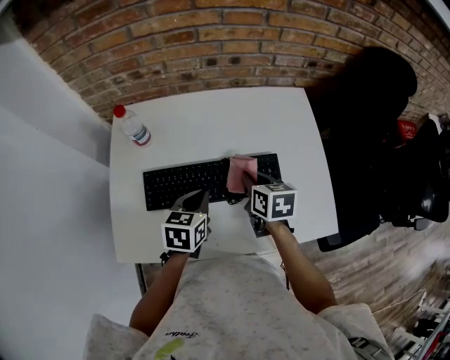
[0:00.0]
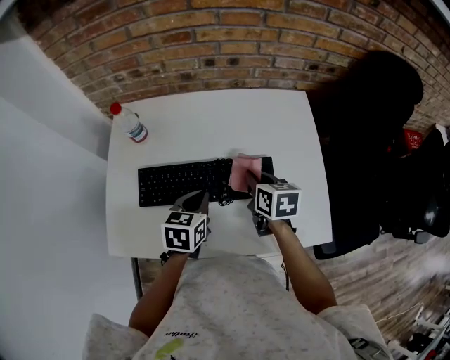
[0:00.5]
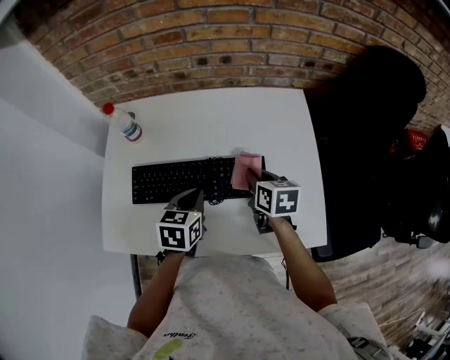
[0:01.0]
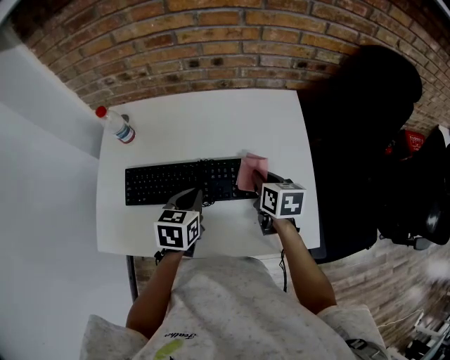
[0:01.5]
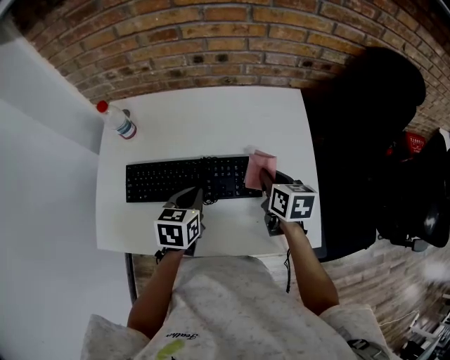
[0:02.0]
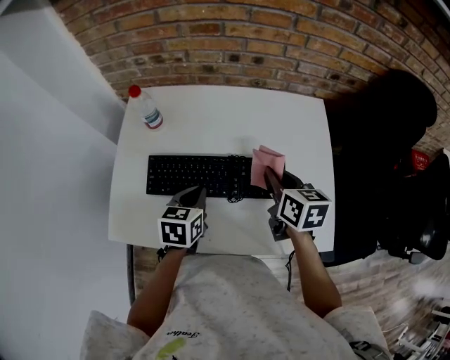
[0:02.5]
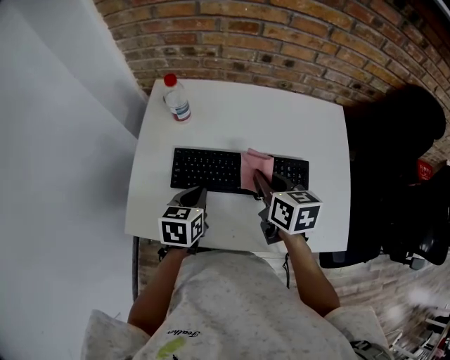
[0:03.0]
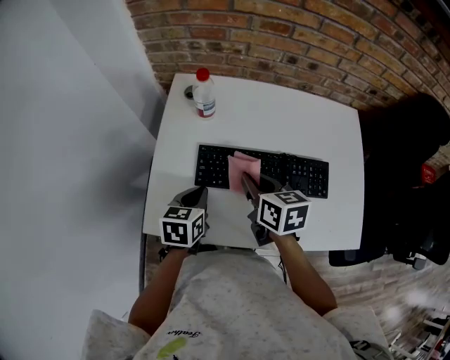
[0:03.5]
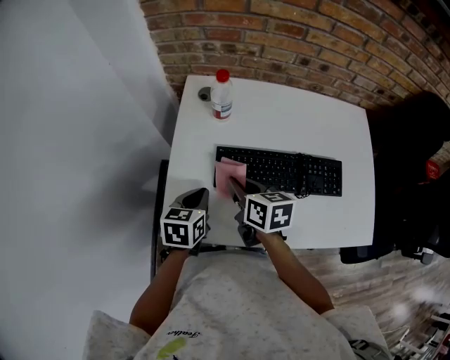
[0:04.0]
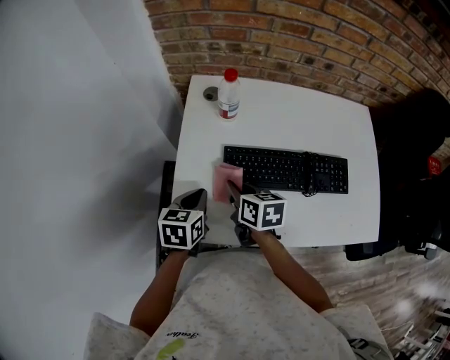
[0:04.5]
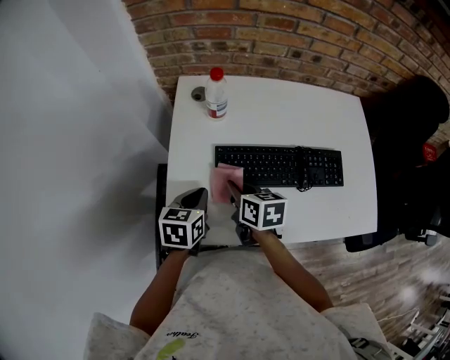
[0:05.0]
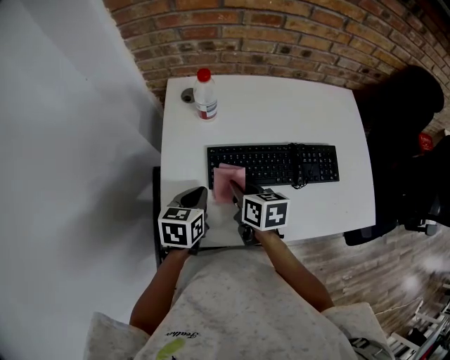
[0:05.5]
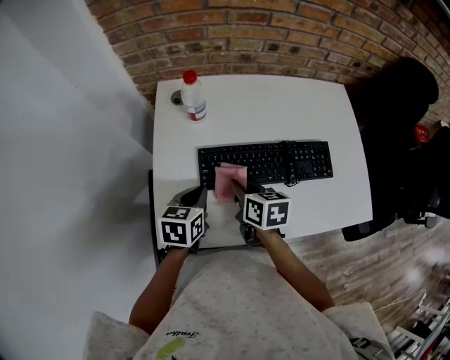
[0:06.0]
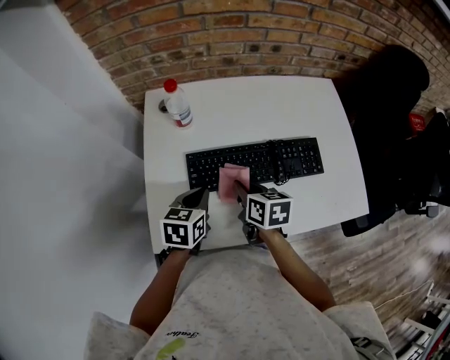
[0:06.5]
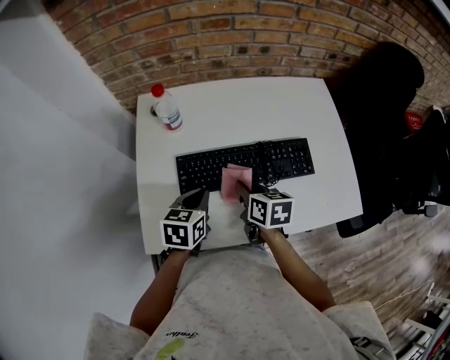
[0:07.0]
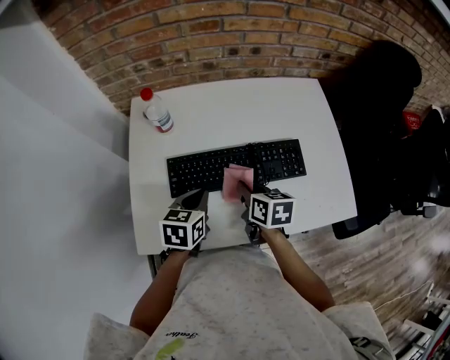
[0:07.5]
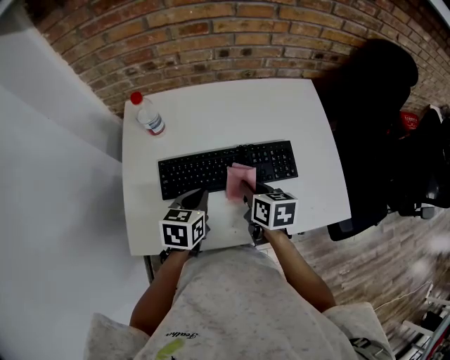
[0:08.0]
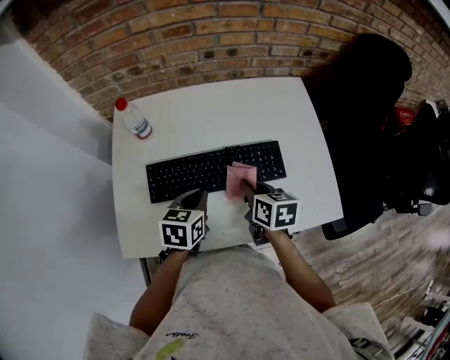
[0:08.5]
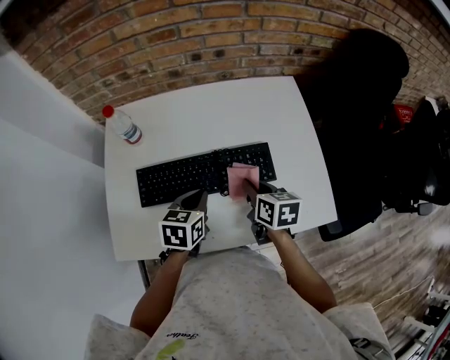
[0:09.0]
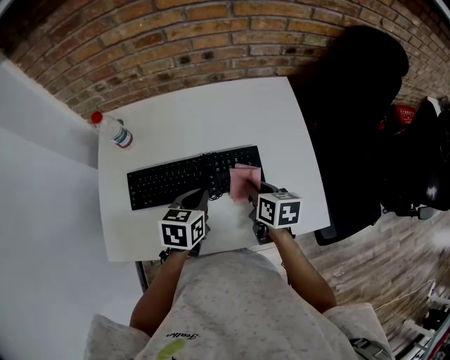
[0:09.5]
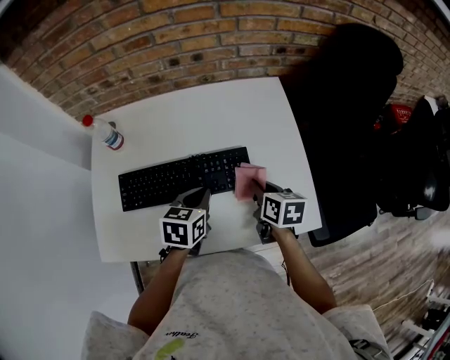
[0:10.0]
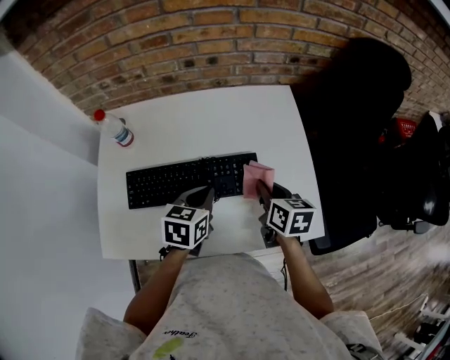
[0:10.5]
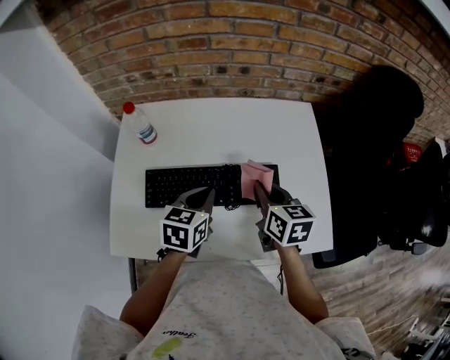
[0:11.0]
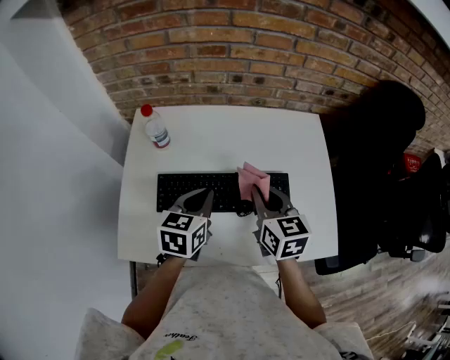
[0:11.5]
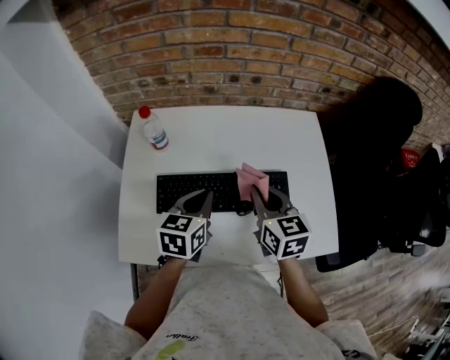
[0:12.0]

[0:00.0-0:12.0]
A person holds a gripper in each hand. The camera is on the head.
0:00.0 to 0:02.0: The right gripper heads to the right, covering roughly 15 cm; the left gripper moves to the right, roughly 5 cm.
0:02.0 to 0:04.0: The two grippers go some 35 cm to the left.
0:04.0 to 0:06.0: The right gripper changes place by some 5 cm.
0:06.0 to 0:08.0: Both grippers move to the right, about 15 cm.
0:08.0 to 0:10.0: The two grippers go approximately 20 cm to the right.
0:10.0 to 0:12.0: Both grippers move to the left and upward, about 15 cm. The right gripper changes its angle by some 30 degrees.

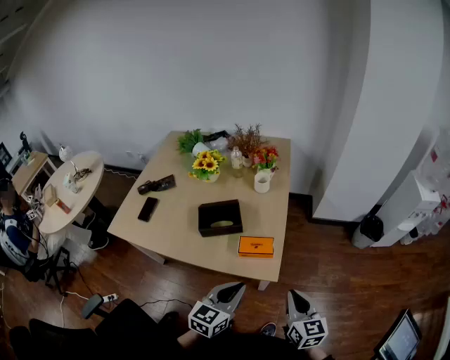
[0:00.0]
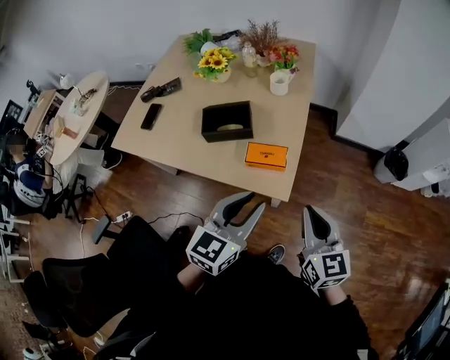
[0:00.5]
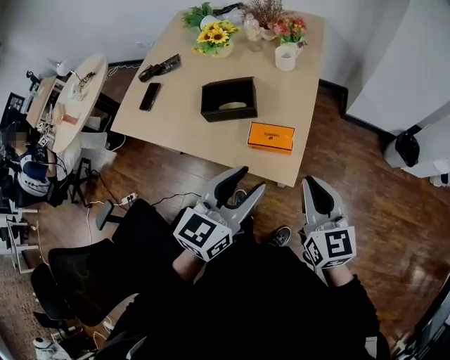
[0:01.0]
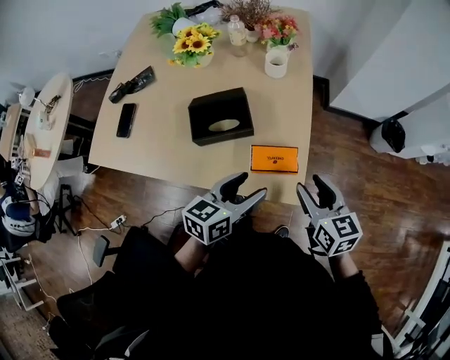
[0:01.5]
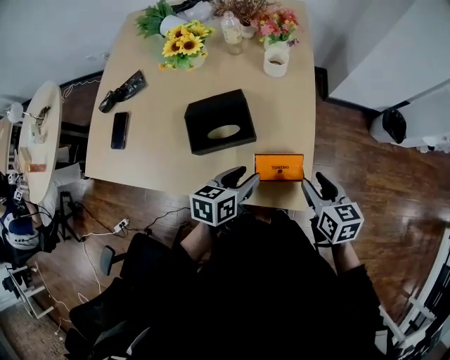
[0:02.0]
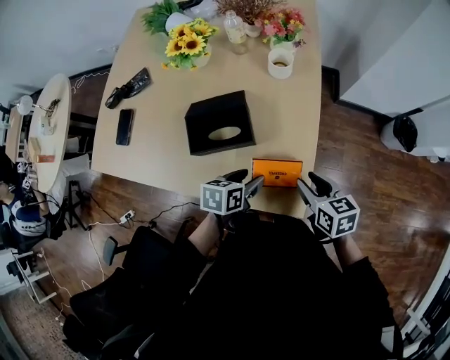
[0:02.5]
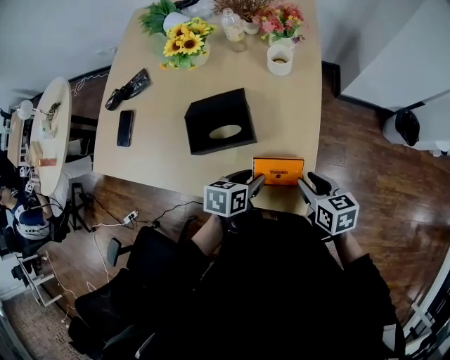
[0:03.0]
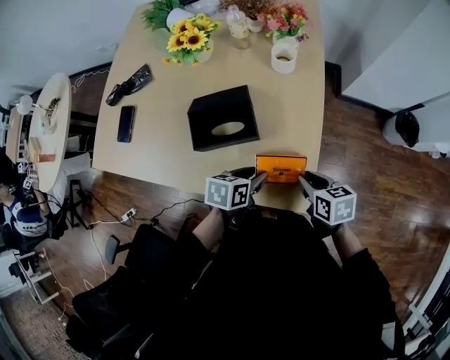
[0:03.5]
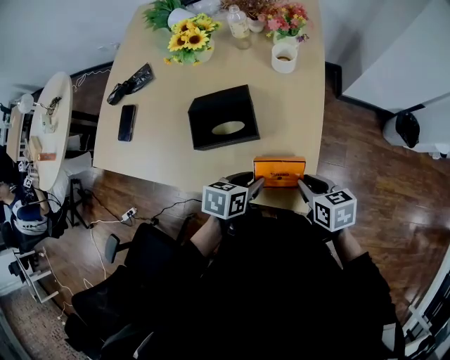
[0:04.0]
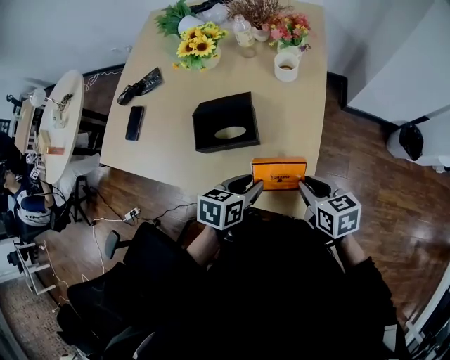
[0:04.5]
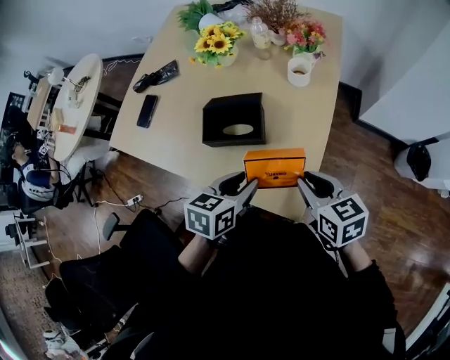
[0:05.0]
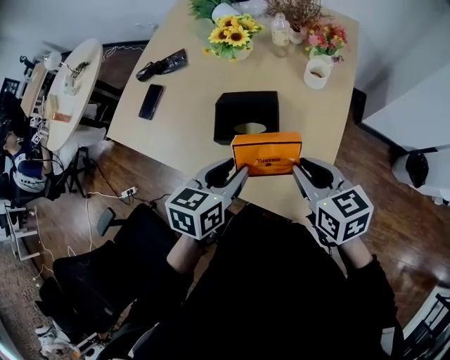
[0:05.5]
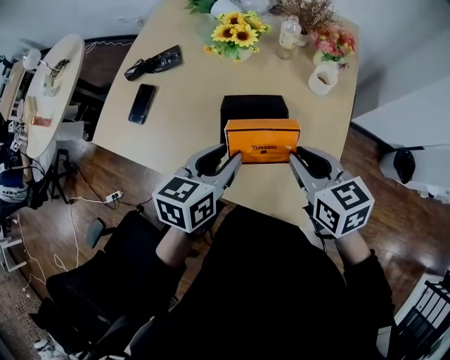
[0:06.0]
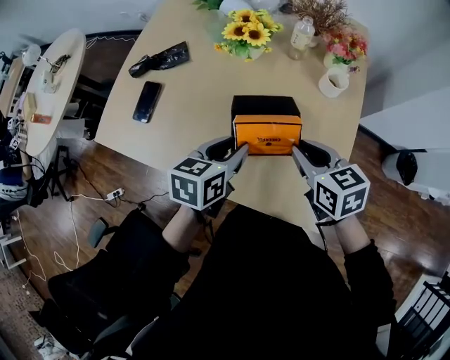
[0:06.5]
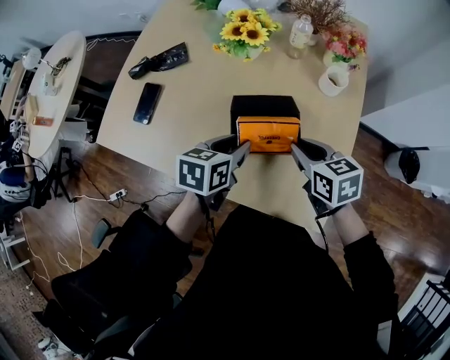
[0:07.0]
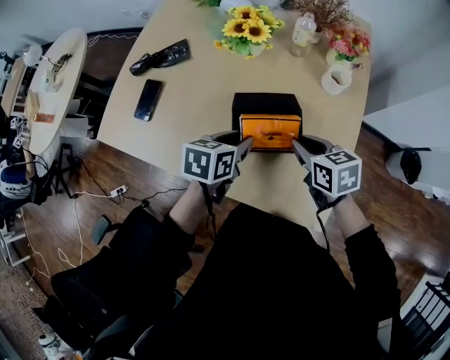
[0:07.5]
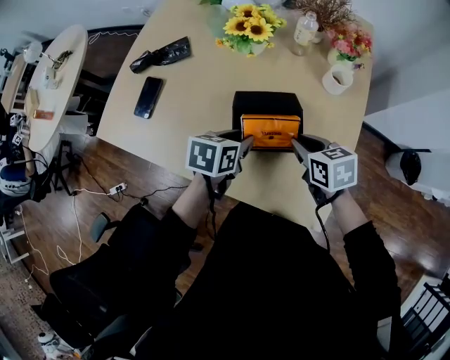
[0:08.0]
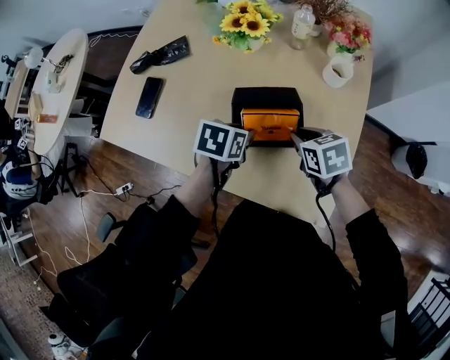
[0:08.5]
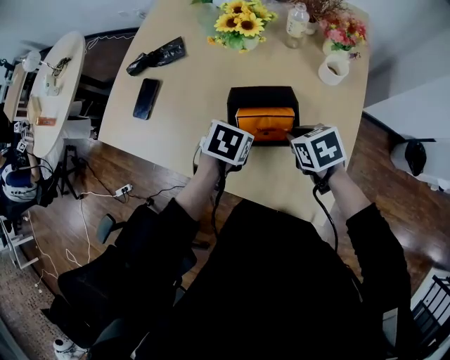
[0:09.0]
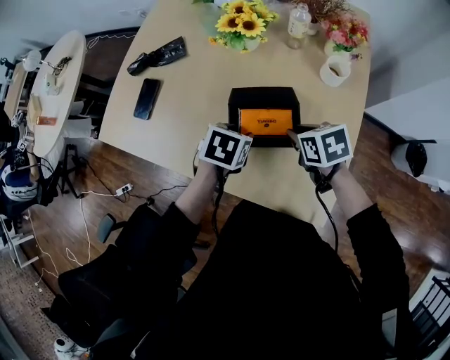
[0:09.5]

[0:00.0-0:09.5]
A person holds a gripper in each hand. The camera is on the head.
0:00.0 to 0:02.0: Both grippers travel together forward and downward, about 25 cm. The right gripper opens up, while the left gripper turns by roughly 30 degrees, and opens up.
0:02.0 to 0:04.0: The right gripper is displaced downward by roughly 5 cm, and closes. Meanwhile the left gripper shifts by approximately 5 cm.
0:04.0 to 0:05.5: The right gripper is displaced upward, to the left and forward by roughly 20 cm, and turns by about 20 degrees. The left gripper moves upward and to the left, about 15 cm, and swivels about 30 degrees.
0:05.5 to 0:07.5: Both grippers move forward, downward and to the left, about 15 cm.
0:07.5 to 0:09.5: The left gripper changes its angle by approximately 20 degrees.

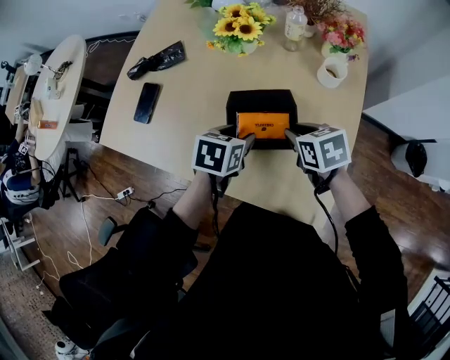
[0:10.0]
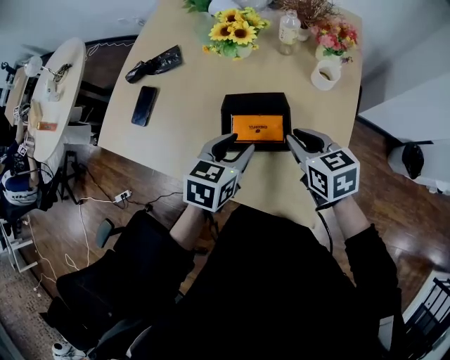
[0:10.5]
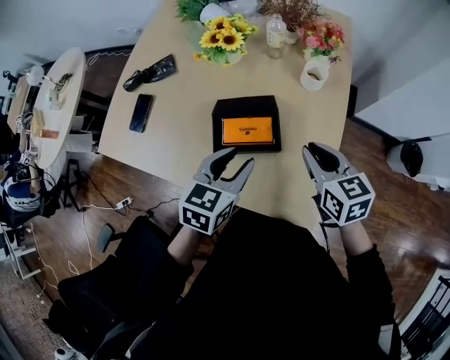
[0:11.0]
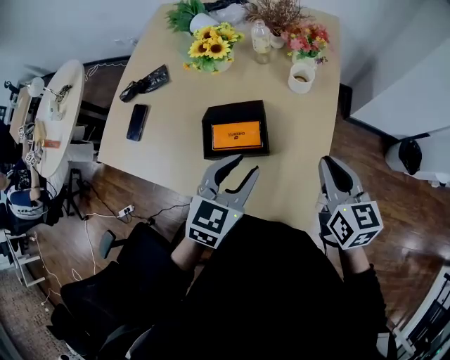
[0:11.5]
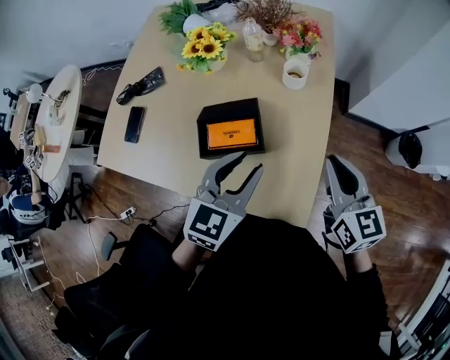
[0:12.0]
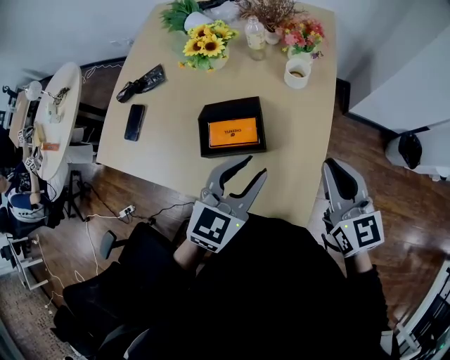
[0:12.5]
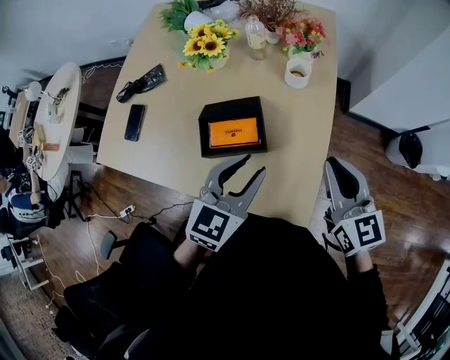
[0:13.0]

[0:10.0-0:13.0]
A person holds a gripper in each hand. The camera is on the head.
0:10.0 to 0:11.5: The right gripper moves to the right, upward and backward, roughly 20 cm, and tilts its fingers roughly 30 degrees upward. The left gripper moves upward, to the right and backward, approximately 20 cm, and changes its angle by some 30 degrees.
0:11.5 to 0:13.0: The grippers stay close to where they were, moving slightly.

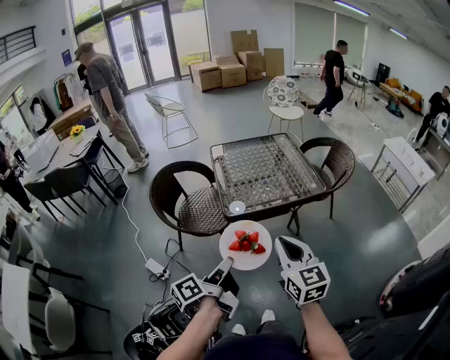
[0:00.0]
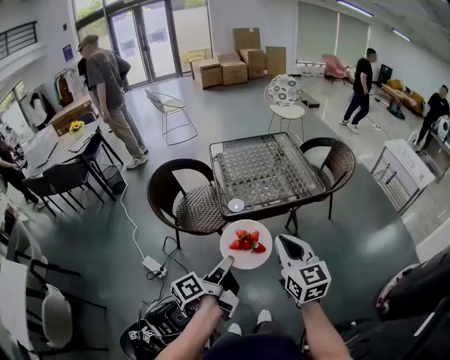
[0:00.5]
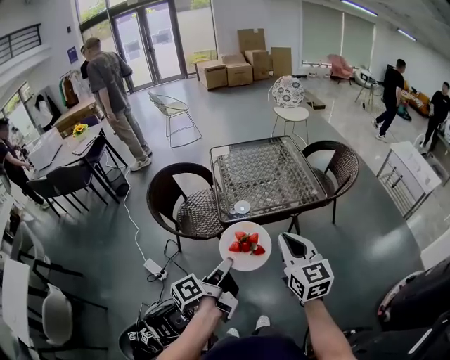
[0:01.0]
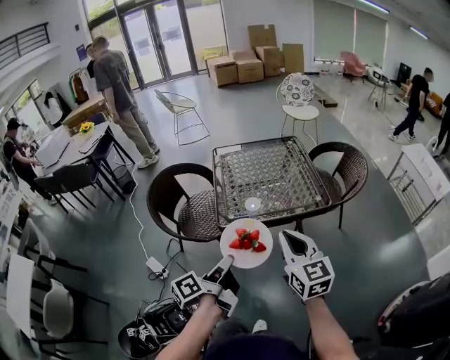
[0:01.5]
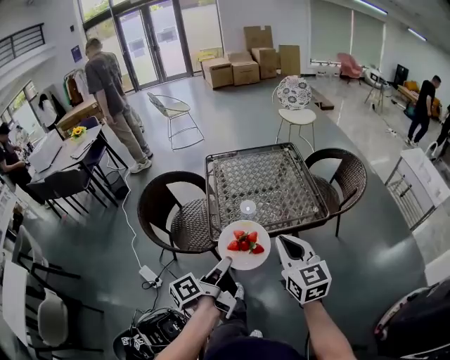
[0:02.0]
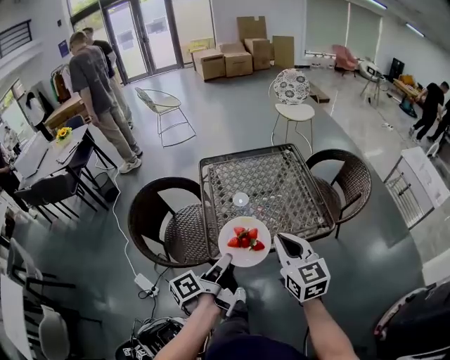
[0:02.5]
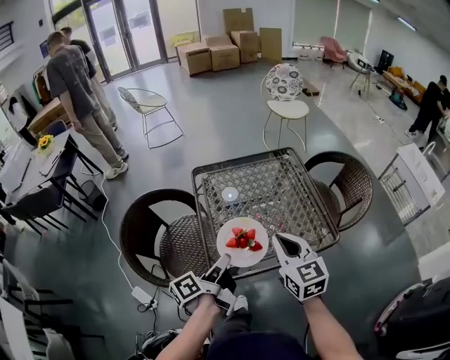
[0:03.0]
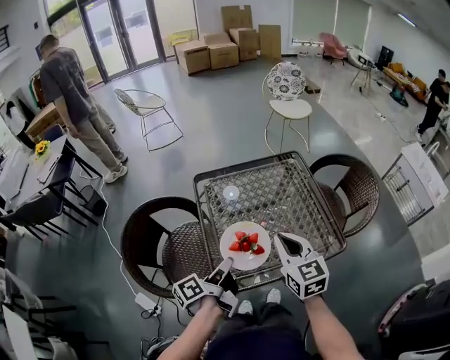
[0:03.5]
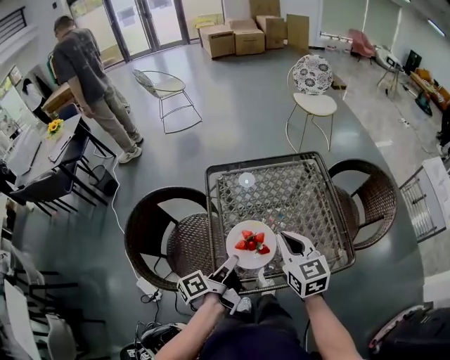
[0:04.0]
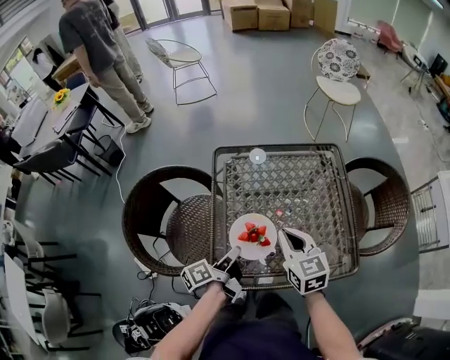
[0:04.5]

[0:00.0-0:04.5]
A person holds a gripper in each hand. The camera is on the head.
0:00.0 to 0:02.0: The right gripper ends up about 15 cm from where it was.
0:02.0 to 0:04.5: The right gripper ends up roughly 35 cm from where it was.
